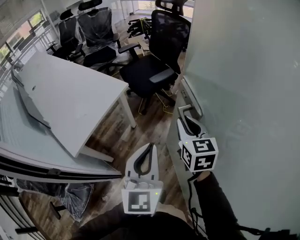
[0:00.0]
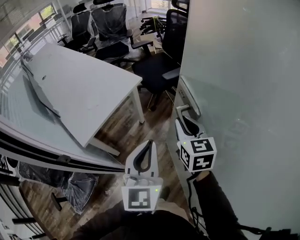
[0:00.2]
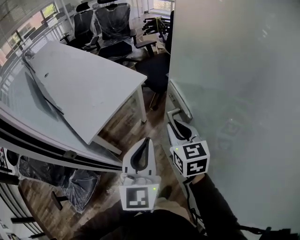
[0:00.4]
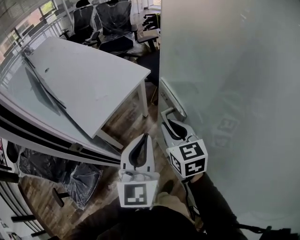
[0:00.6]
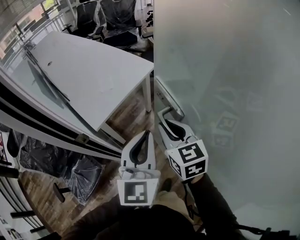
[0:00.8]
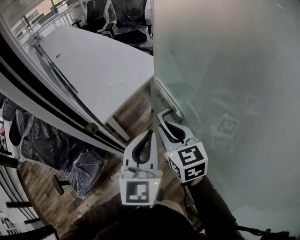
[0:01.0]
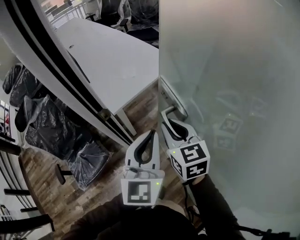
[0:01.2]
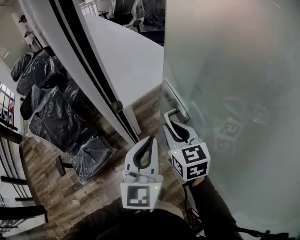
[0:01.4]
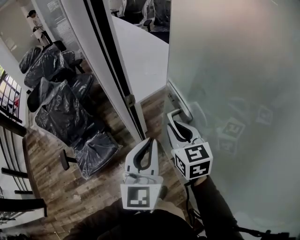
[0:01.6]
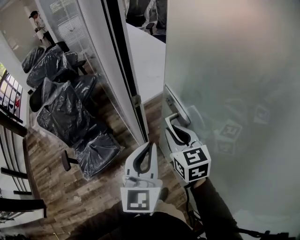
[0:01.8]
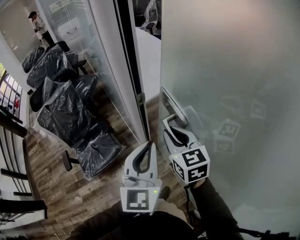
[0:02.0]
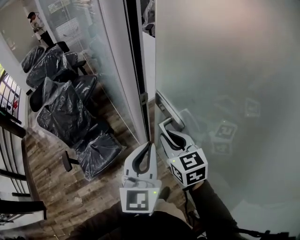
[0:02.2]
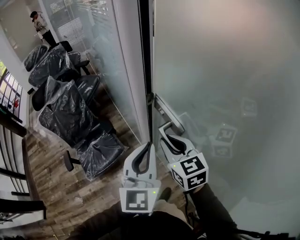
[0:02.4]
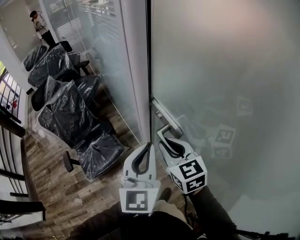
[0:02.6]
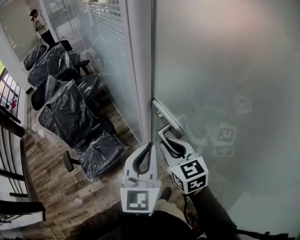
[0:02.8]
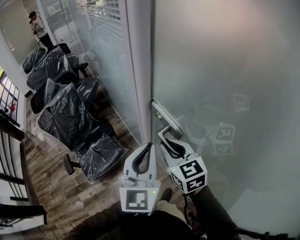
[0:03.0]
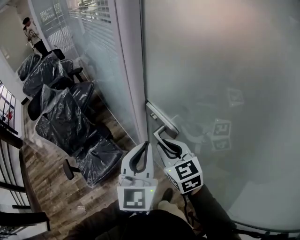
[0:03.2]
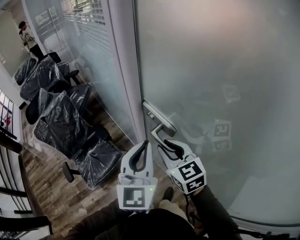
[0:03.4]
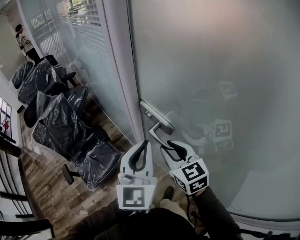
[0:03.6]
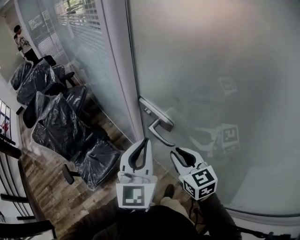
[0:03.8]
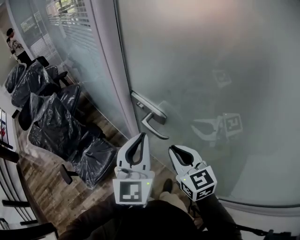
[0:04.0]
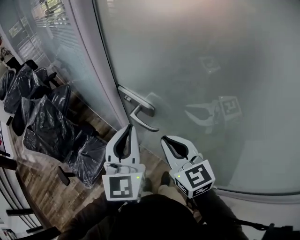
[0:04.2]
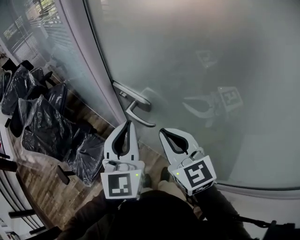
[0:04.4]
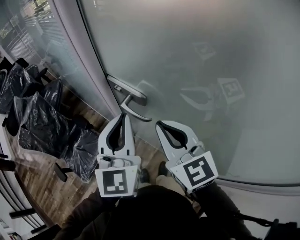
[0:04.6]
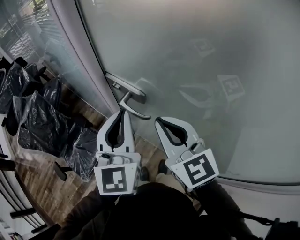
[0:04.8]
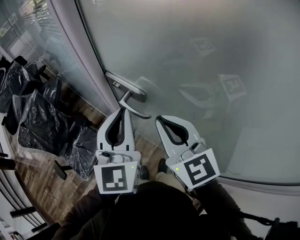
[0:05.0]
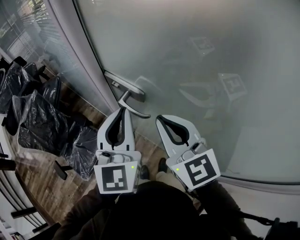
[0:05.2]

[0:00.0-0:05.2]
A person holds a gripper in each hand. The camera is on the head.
0:00.0 to 0:01.8: The right gripper moves roughly 50 cm, and rotates some 30 degrees. The left gripper moves roughly 40 cm, and swivels some 20 degrees.
0:01.8 to 0:03.4: The left gripper moves to the left, roughly 5 cm, while the right gripper goes some 10 cm to the left and backward.
0:03.4 to 0:05.2: The right gripper goes roughly 10 cm upward, backward and to the right.

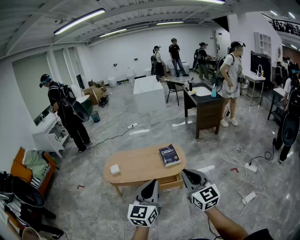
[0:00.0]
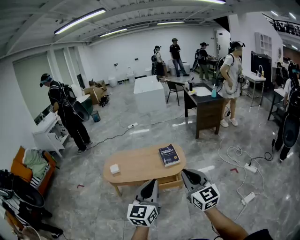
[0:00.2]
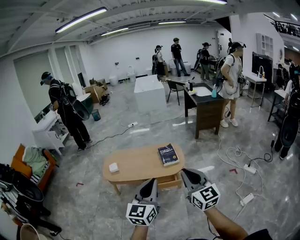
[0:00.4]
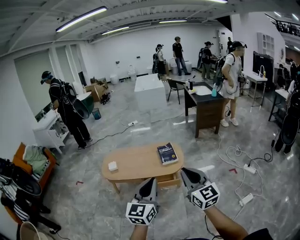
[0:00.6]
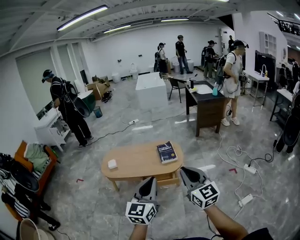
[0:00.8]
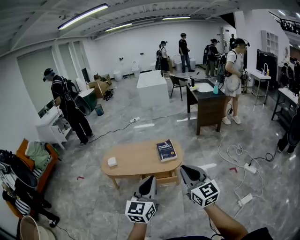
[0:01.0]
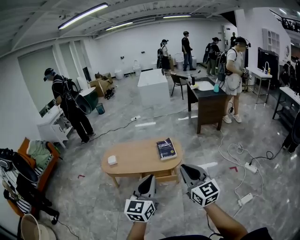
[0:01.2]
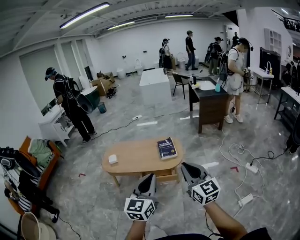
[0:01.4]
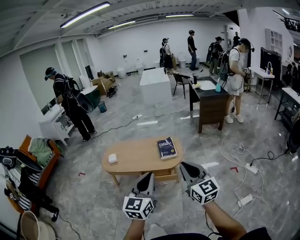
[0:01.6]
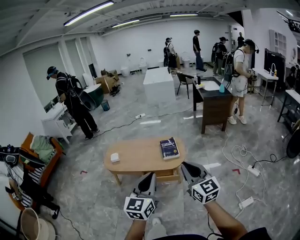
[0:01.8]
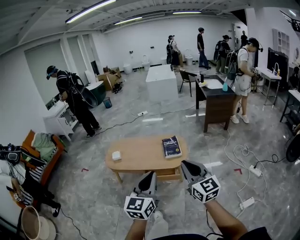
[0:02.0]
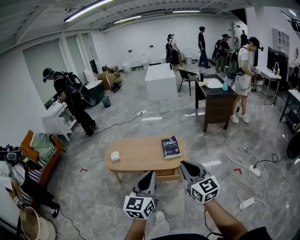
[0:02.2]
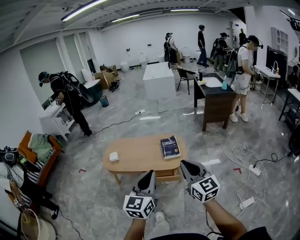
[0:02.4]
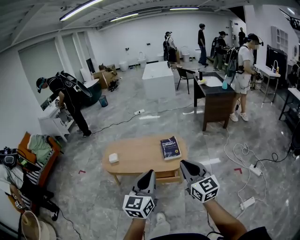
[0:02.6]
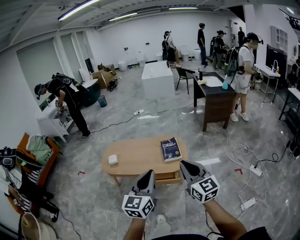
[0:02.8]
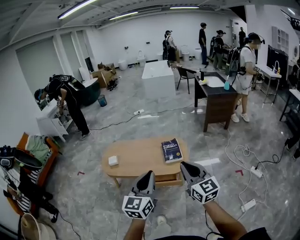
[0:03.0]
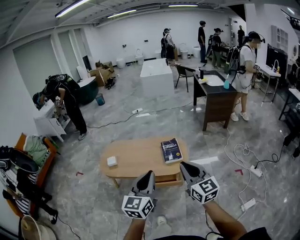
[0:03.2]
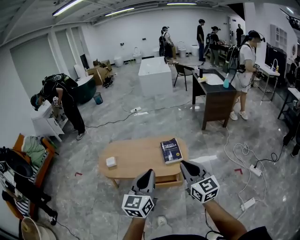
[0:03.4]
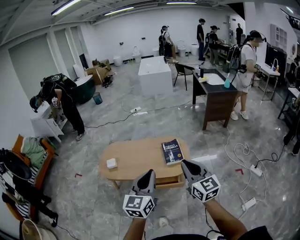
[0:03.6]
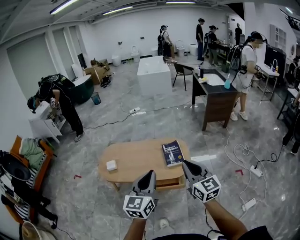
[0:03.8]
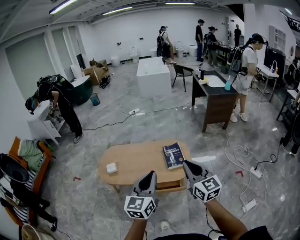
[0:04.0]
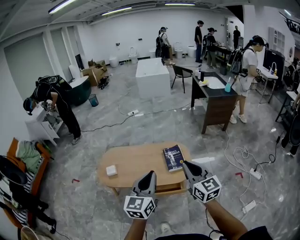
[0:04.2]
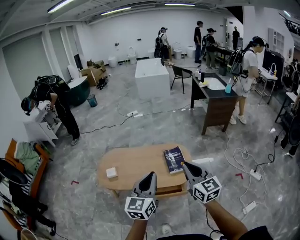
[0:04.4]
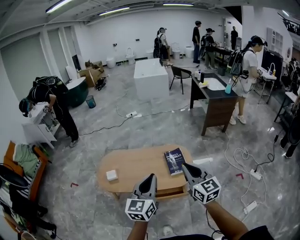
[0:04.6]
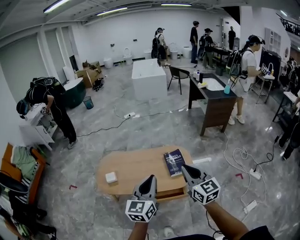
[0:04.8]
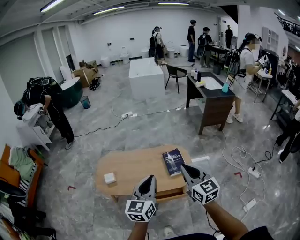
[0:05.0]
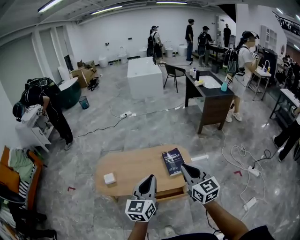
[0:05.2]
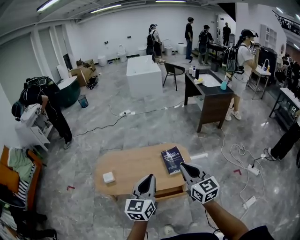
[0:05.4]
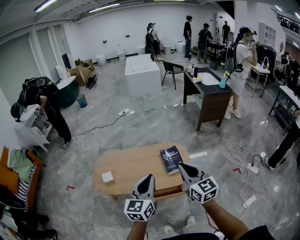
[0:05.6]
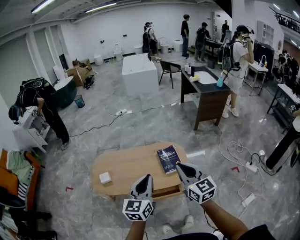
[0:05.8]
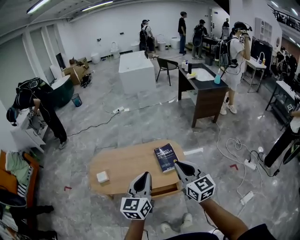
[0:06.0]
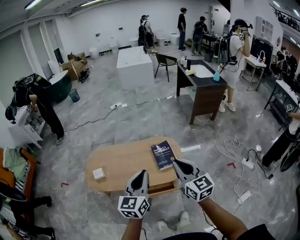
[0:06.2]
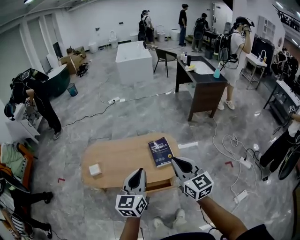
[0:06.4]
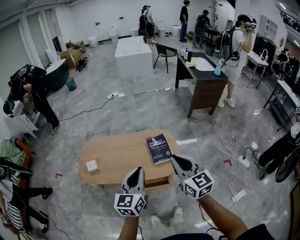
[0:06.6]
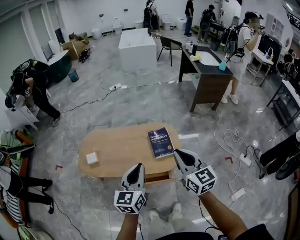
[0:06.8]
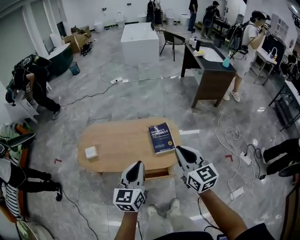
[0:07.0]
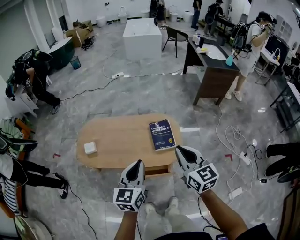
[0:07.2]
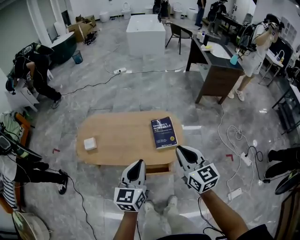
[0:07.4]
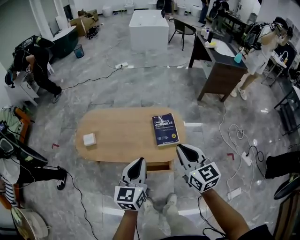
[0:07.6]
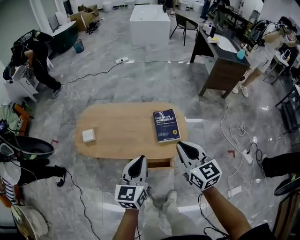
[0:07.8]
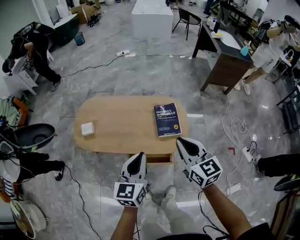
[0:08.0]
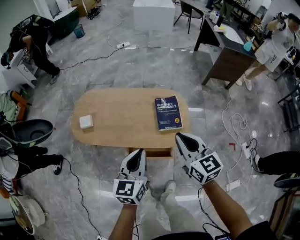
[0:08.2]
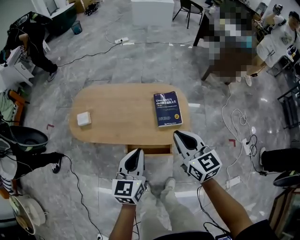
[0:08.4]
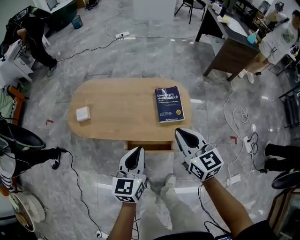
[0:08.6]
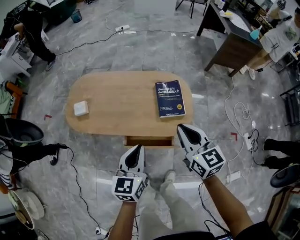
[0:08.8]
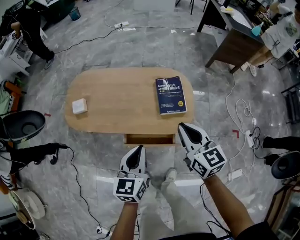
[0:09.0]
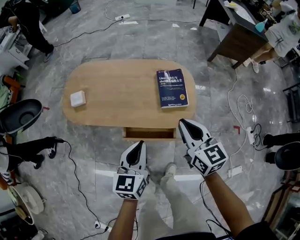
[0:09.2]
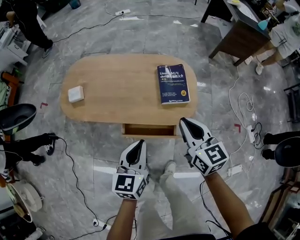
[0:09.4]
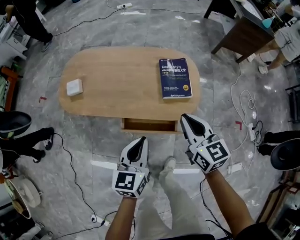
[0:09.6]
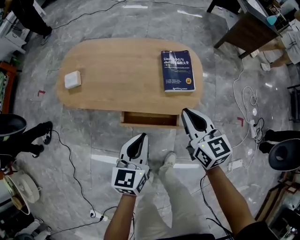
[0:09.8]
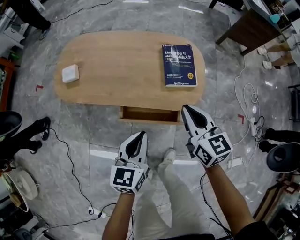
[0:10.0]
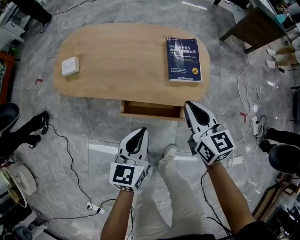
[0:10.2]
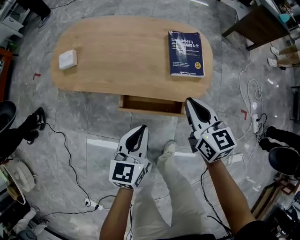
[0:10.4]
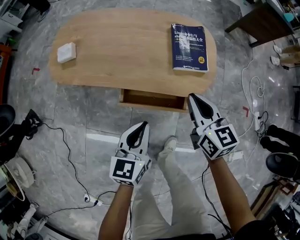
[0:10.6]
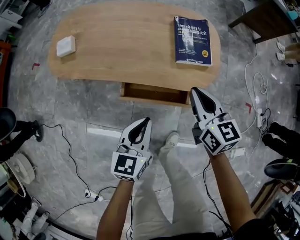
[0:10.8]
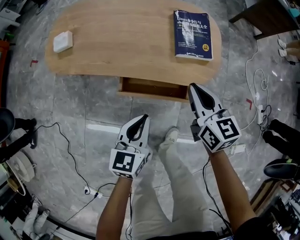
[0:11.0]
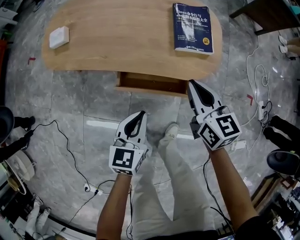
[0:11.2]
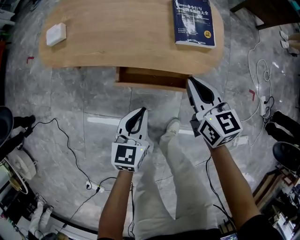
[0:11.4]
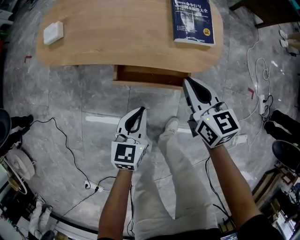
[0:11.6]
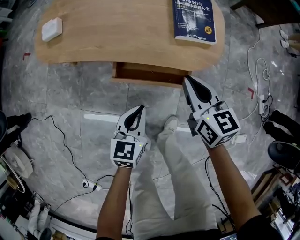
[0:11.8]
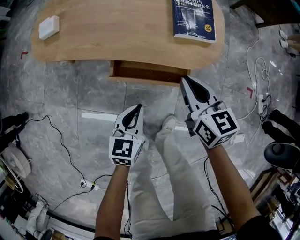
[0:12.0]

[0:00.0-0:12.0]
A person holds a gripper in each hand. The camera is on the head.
0:00.0 to 0:01.6: Both grippers travel together to the right, about 10 cm.
0:01.6 to 0:03.0: Both grippers move forward, approximately 15 cm.
0:03.0 to 0:04.4: Both grippers travel together forward and to the left, some 15 cm.
0:04.4 to 0:06.0: The right gripper shifts by approximately 5 cm; the left gripper moves forward, some 5 cm.
0:06.0 to 0:07.6: Both grippers travel together downward, approximately 10 cm.
0:07.6 to 0:09.0: Both grippers travel together downward, about 15 cm.
0:09.0 to 0:10.4: The grippers both shift downward by approximately 15 cm.
0:10.4 to 0:12.0: The left gripper shifts some 15 cm downward, while the right gripper goes approximately 10 cm downward.

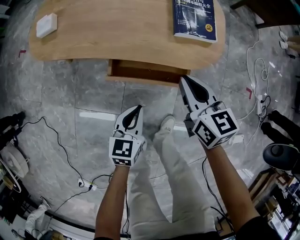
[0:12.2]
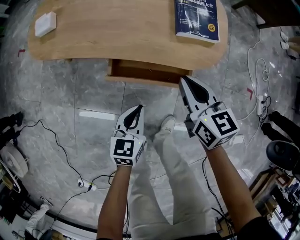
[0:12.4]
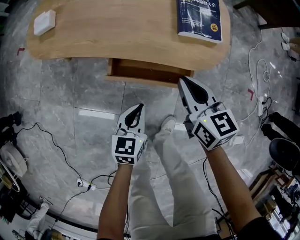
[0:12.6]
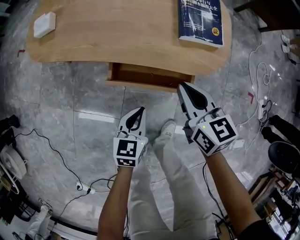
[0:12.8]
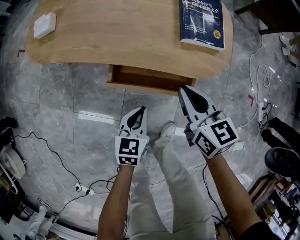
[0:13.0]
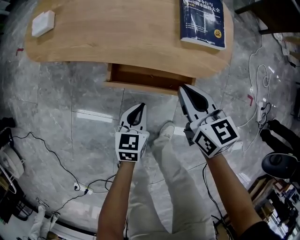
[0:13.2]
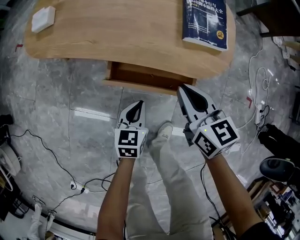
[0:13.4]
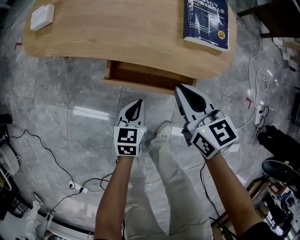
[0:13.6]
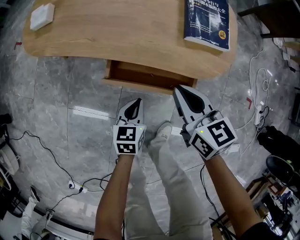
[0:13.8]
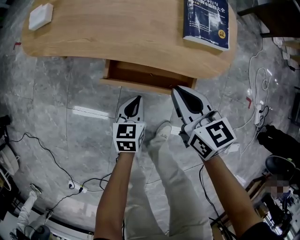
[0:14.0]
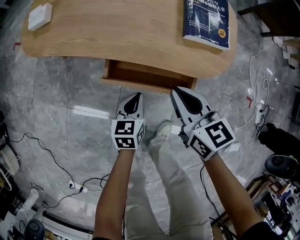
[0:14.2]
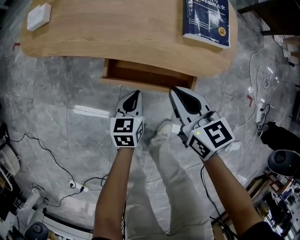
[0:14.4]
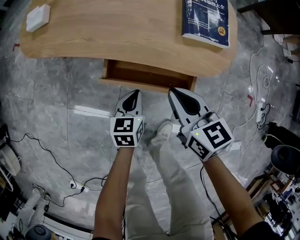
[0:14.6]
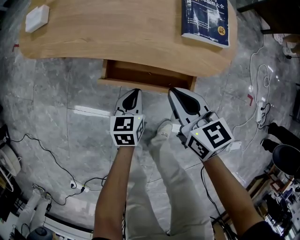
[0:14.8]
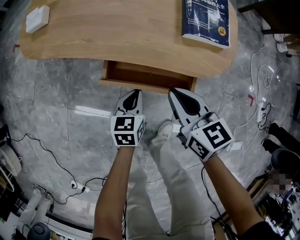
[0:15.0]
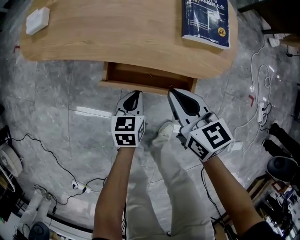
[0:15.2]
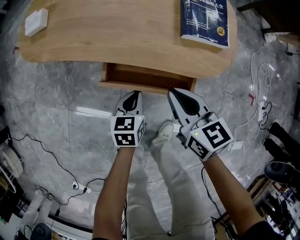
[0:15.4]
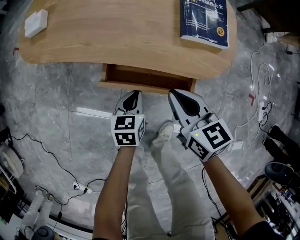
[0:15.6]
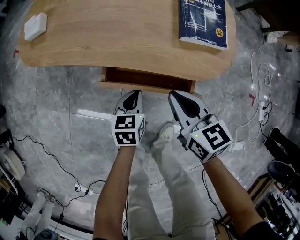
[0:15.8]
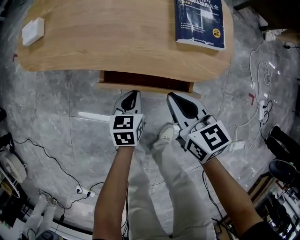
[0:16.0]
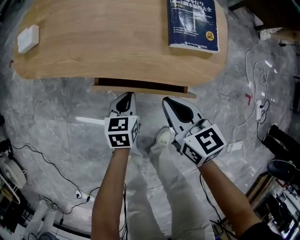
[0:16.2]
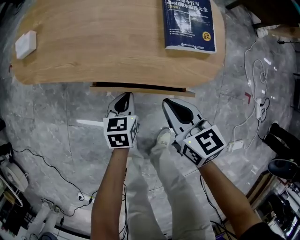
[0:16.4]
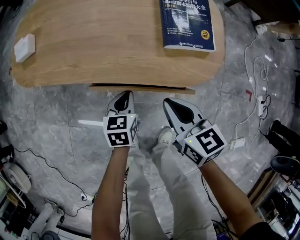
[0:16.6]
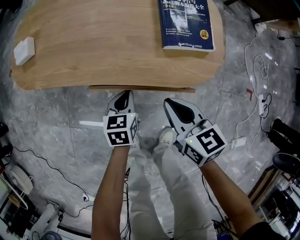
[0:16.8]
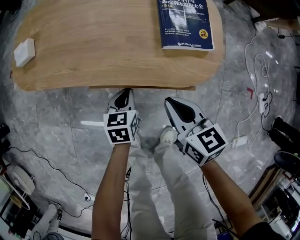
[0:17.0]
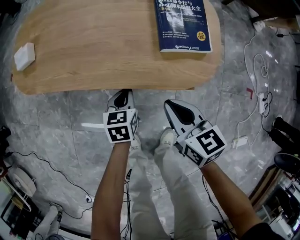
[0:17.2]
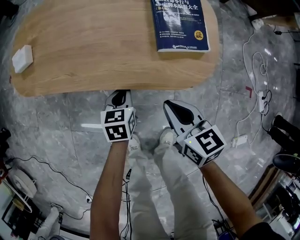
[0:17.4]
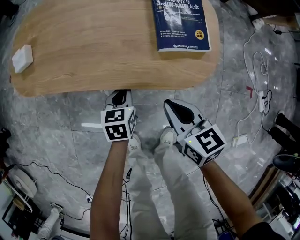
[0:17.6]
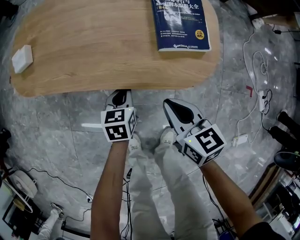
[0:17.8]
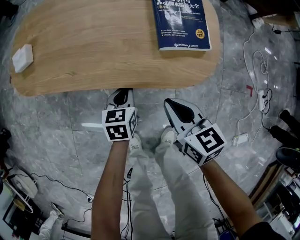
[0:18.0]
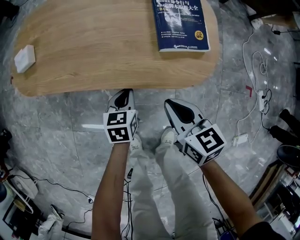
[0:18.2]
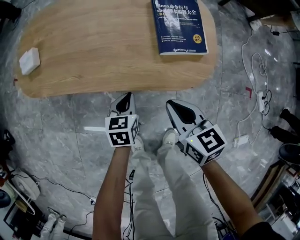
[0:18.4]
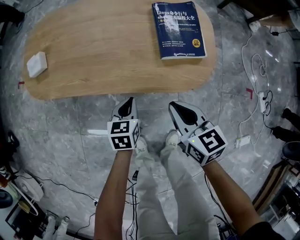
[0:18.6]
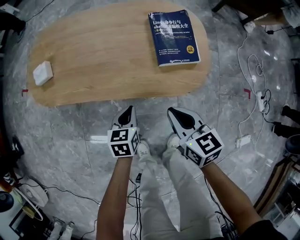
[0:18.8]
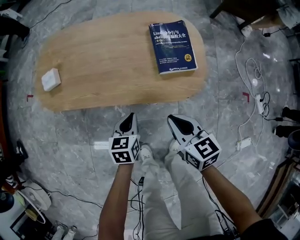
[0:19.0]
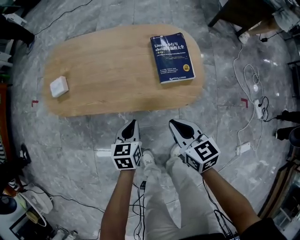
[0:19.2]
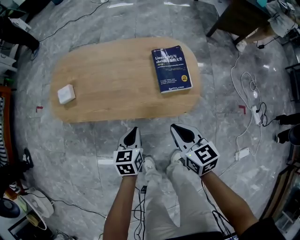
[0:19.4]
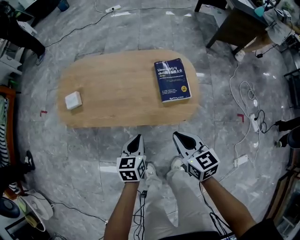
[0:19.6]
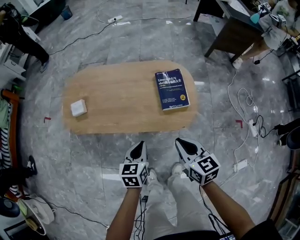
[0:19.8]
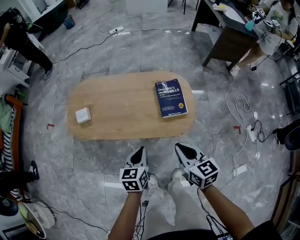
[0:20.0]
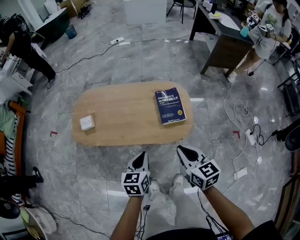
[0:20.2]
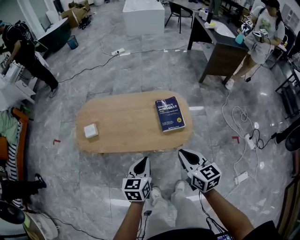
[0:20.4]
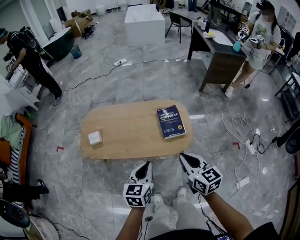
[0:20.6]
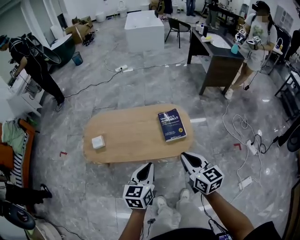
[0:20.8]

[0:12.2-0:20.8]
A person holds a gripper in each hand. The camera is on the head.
0:12.2 to 0:13.6: The right gripper changes place by some 5 cm, while the left gripper goes about 10 cm downward.
0:13.6 to 0:15.0: The grippers move only a little.
0:15.0 to 0:16.6: The left gripper travels forward by some 5 cm.
0:16.6 to 0:18.0: There are only small adjustments of the grippers.
0:18.0 to 0:19.4: Both grippers move upward, approximately 20 cm.
0:19.4 to 0:20.8: Both grippers move upward, about 25 cm. The left gripper rotates approximately 20 degrees.
